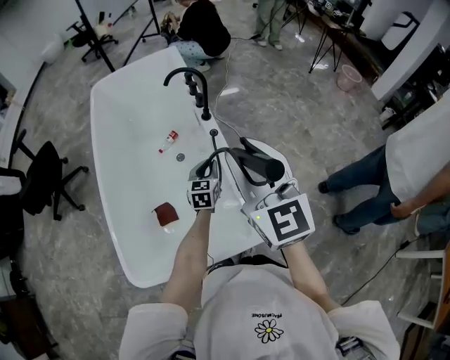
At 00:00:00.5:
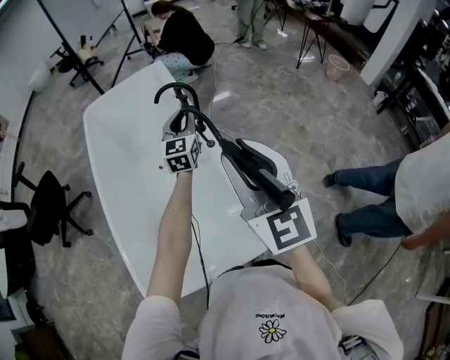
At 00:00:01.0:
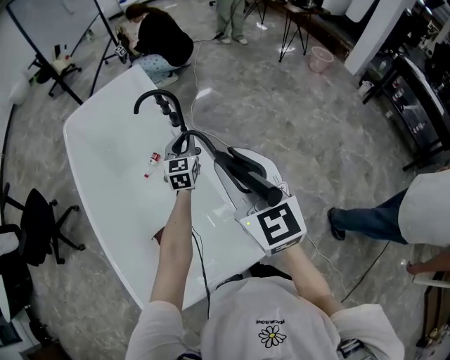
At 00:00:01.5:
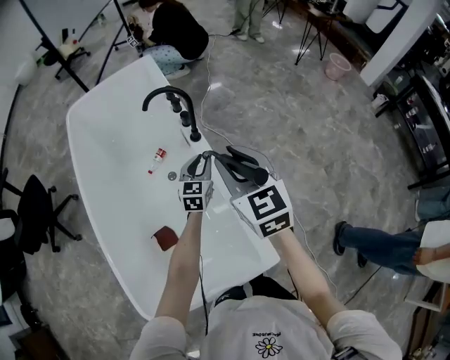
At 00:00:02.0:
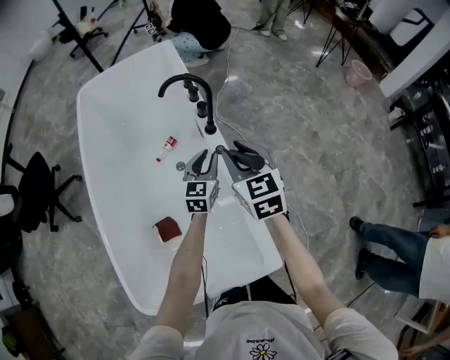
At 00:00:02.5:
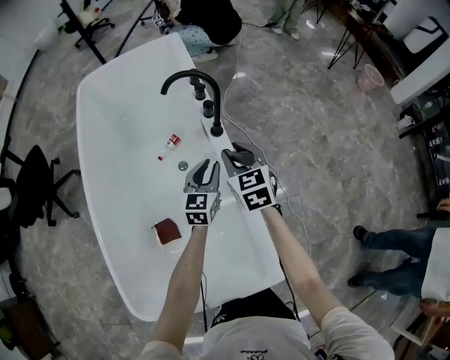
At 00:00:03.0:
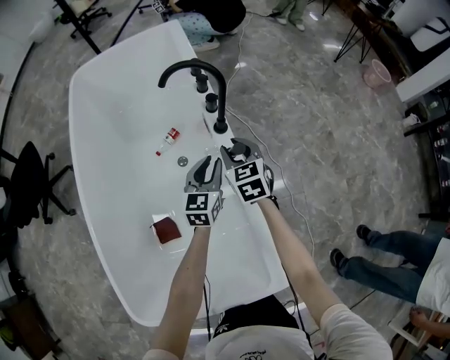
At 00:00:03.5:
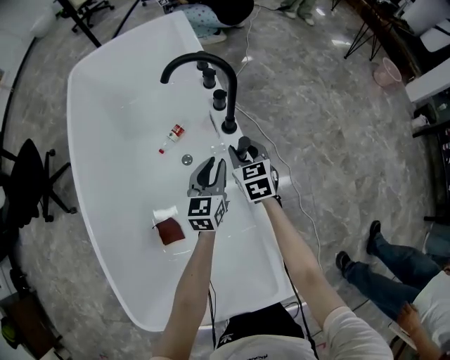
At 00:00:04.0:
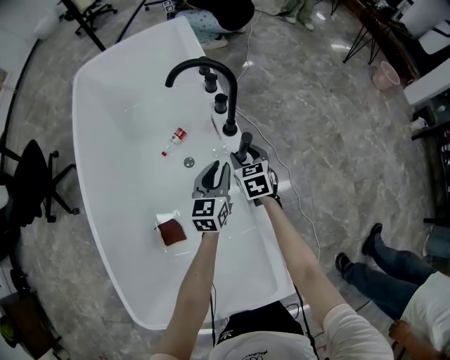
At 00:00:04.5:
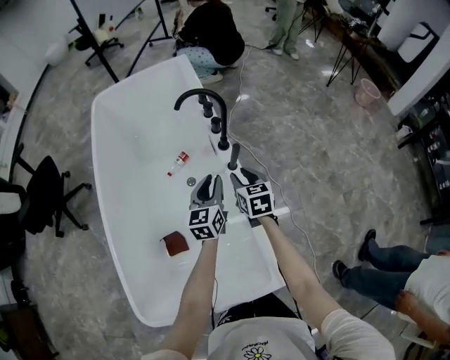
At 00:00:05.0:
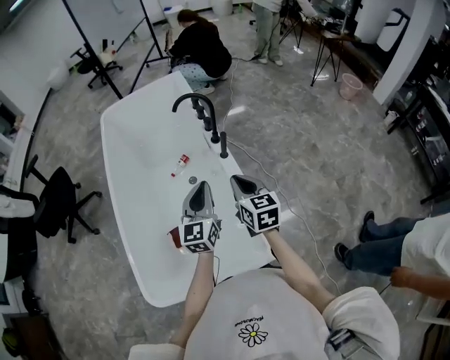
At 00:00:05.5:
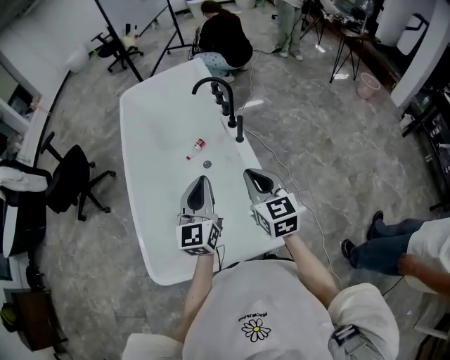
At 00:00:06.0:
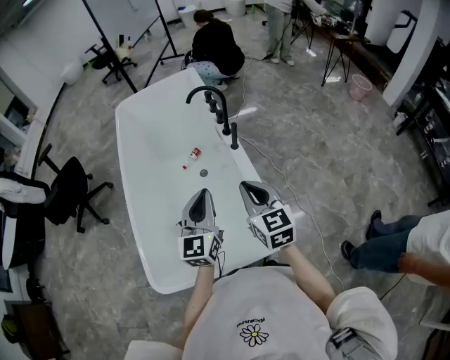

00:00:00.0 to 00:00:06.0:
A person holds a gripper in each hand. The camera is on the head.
00:00:00.0 to 00:00:02.0: The right gripper shifts approximately 30 cm forward and downward, and turns by some 30 degrees. The left gripper travels forward by some 15 cm, and moves approximately 20 cm upward and comes back.
00:00:02.0 to 00:00:04.0: The right gripper heads downward and forward, covering some 30 cm, while the left gripper goes some 10 cm downward.
00:00:04.0 to 00:00:06.0: Both grippers move backward and upward, roughly 50 cm. The right gripper rotates approximately 30 degrees, and closes up. Meanwhile the left gripper rotates roughly 20 degrees, and closes its fingers.

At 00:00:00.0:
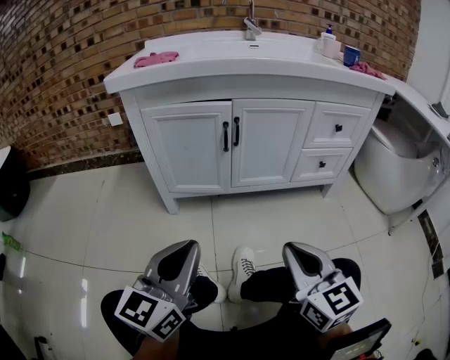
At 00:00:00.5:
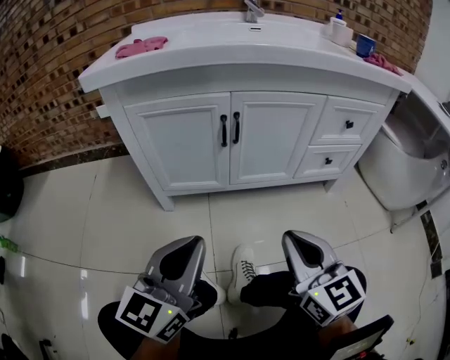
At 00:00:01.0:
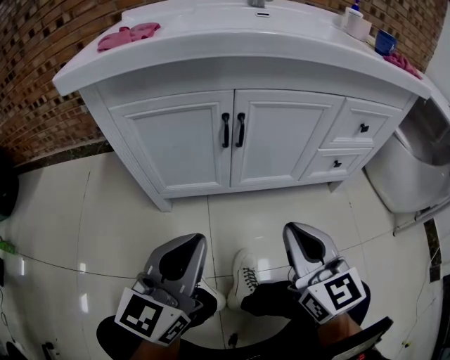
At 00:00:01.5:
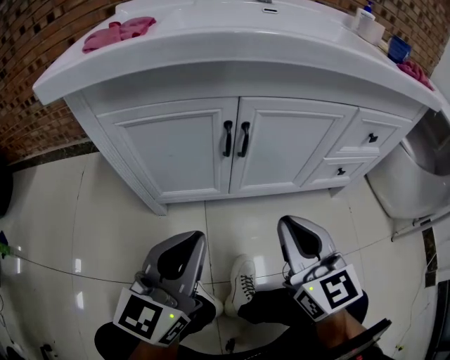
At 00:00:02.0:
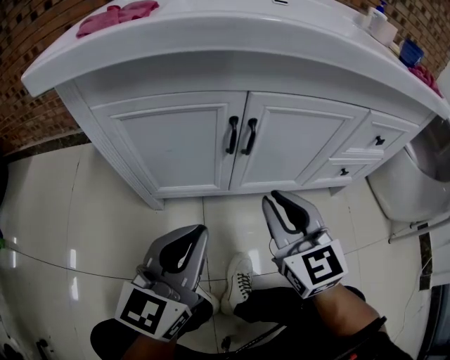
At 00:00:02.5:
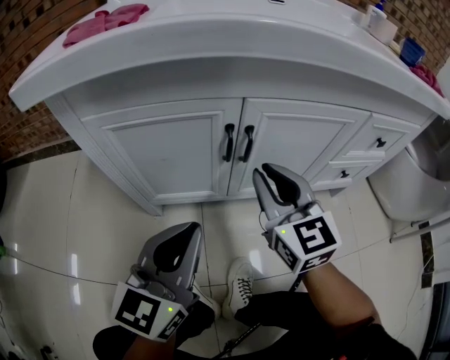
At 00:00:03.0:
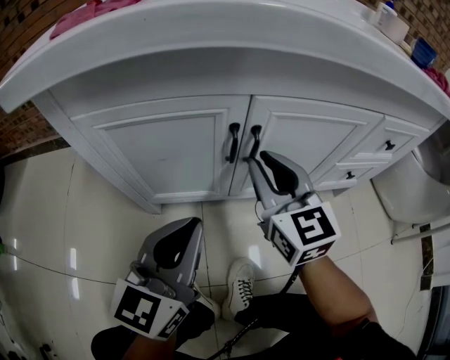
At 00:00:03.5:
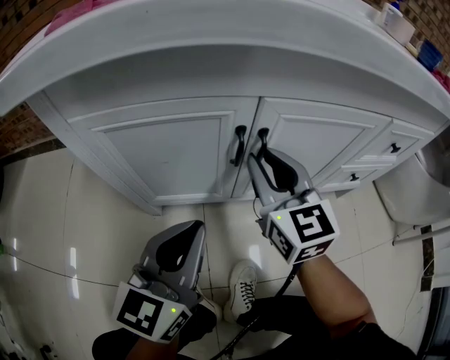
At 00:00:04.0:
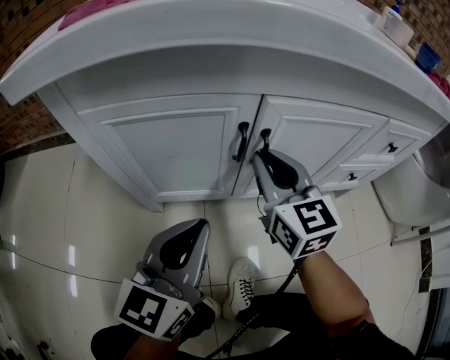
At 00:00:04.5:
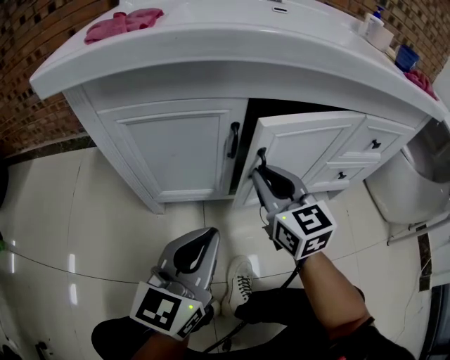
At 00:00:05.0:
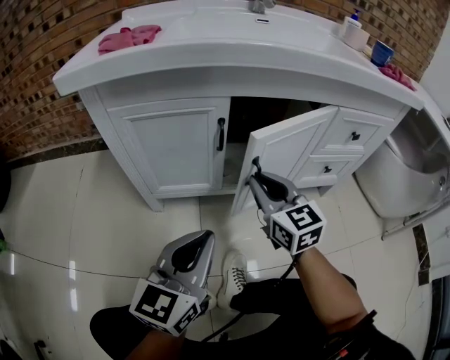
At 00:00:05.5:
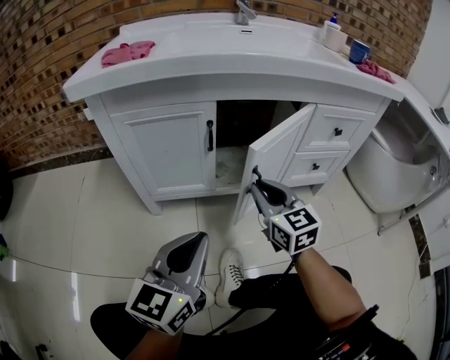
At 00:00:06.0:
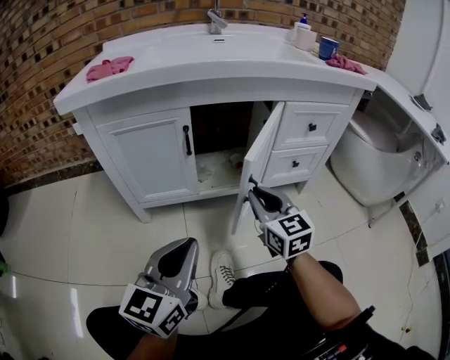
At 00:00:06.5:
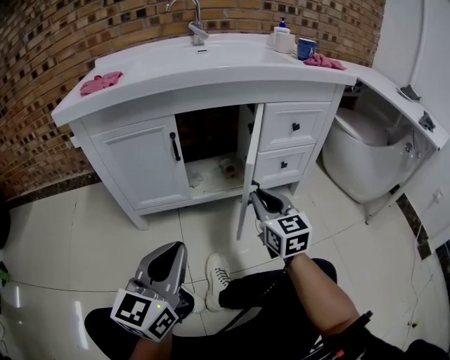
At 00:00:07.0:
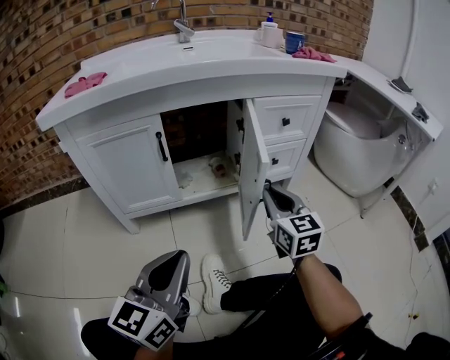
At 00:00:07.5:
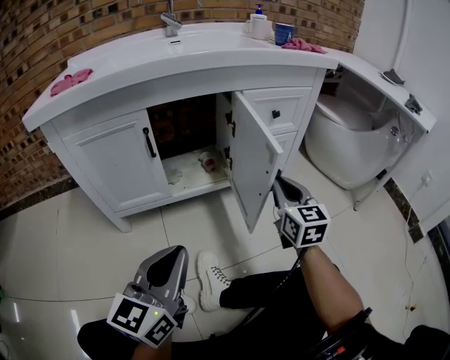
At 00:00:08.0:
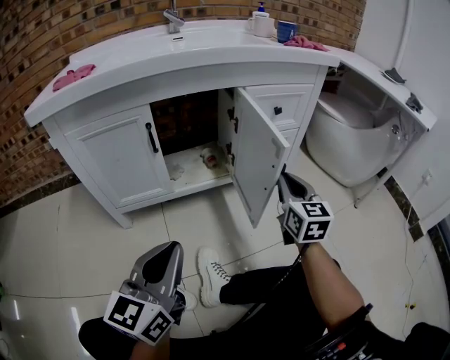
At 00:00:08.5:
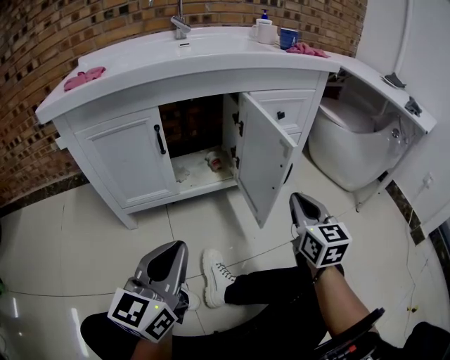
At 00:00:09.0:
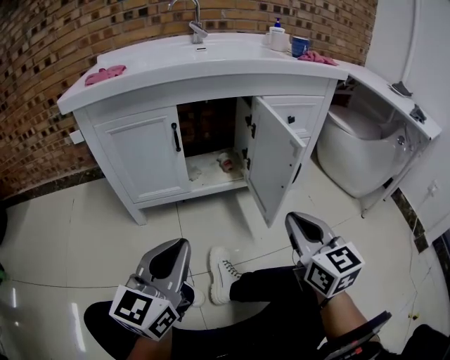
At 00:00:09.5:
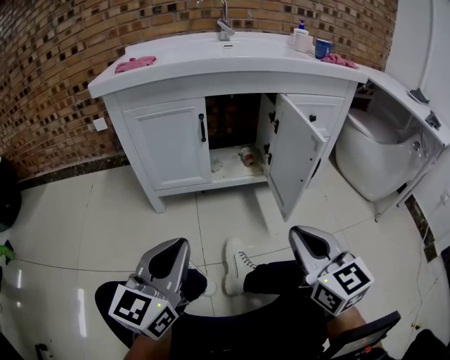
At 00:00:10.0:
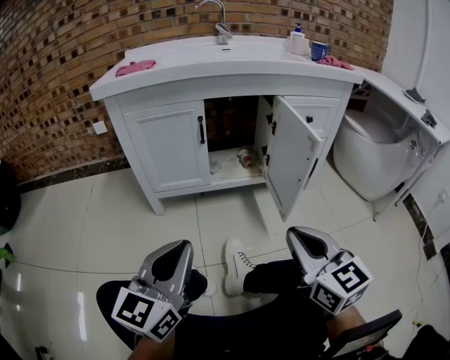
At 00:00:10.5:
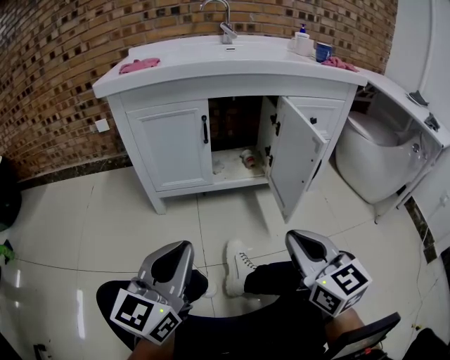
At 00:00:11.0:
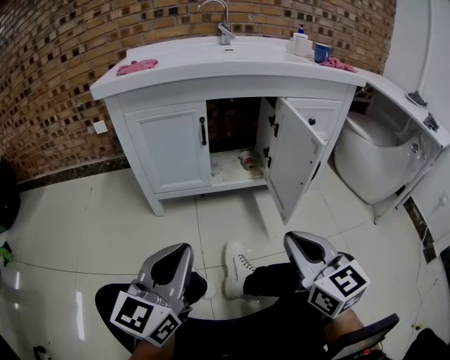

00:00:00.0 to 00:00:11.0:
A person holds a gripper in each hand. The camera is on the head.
00:00:00.0 to 00:00:02.0: The grippers both shift forward by approximately 25 cm.
00:00:02.0 to 00:00:03.5: The left gripper moves forward, roughly 5 cm. Meanwhile the right gripper shifts about 10 cm forward.
00:00:03.5 to 00:00:05.5: The right gripper heads backward and to the right, covering some 15 cm. Meanwhile the left gripper moves backward, approximately 15 cm.
00:00:05.5 to 00:00:07.5: The left gripper travels to the right by some 10 cm. Meanwhile the right gripper moves to the right, approximately 20 cm, and turns by approximately 30 degrees.
00:00:07.5 to 00:00:09.0: The left gripper moves some 5 cm, while the right gripper travels backward by about 15 cm.
00:00:09.0 to 00:00:11.0: The left gripper heads backward, covering roughly 5 cm, while the right gripper goes roughly 10 cm to the left and backward.

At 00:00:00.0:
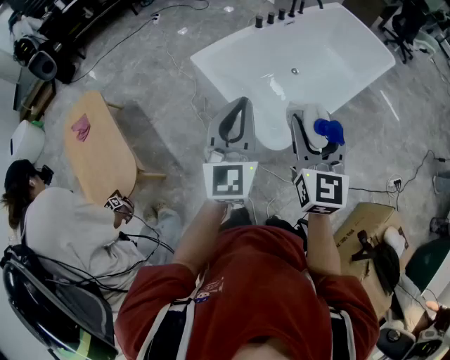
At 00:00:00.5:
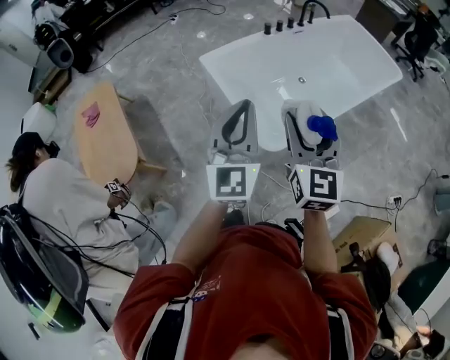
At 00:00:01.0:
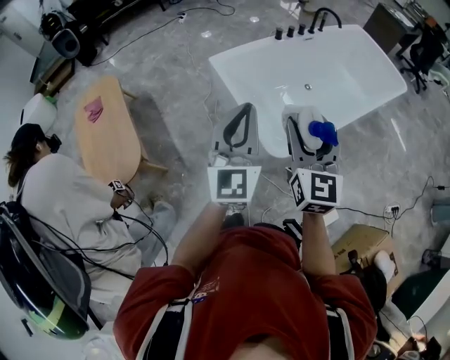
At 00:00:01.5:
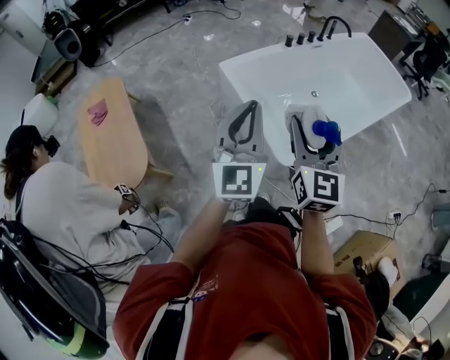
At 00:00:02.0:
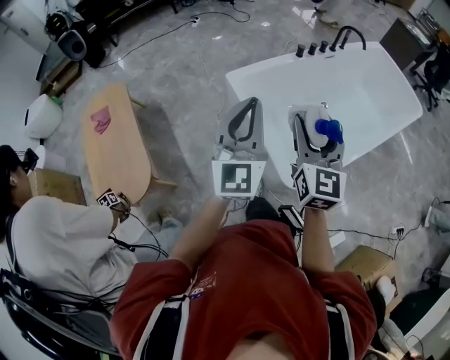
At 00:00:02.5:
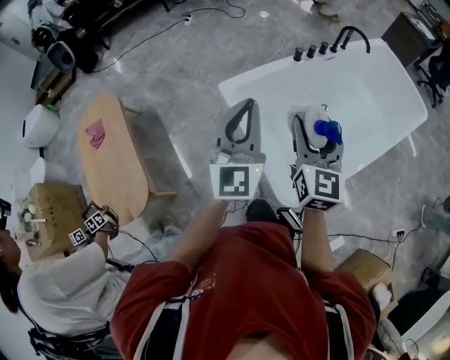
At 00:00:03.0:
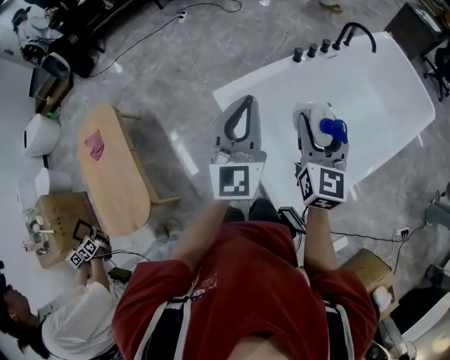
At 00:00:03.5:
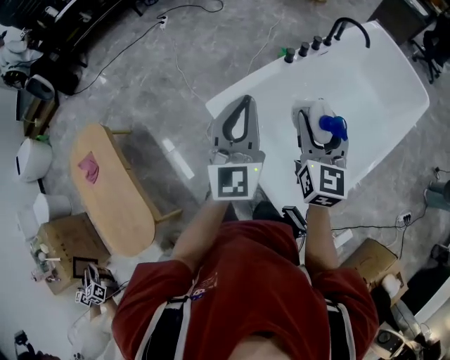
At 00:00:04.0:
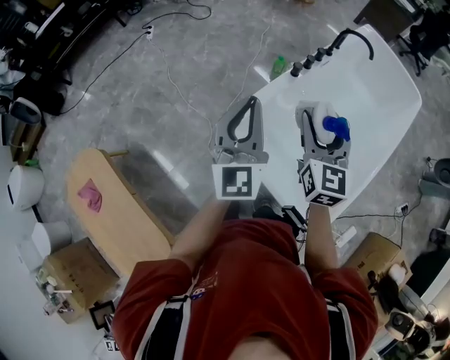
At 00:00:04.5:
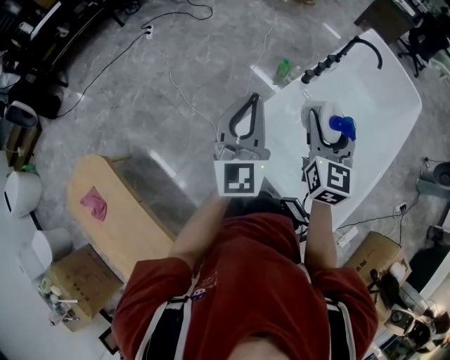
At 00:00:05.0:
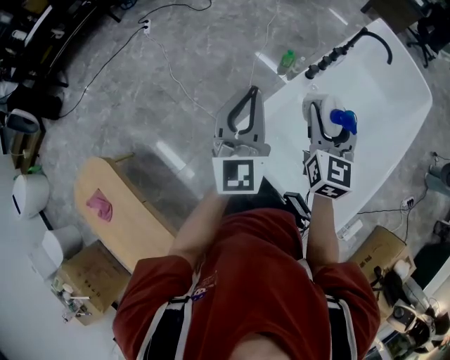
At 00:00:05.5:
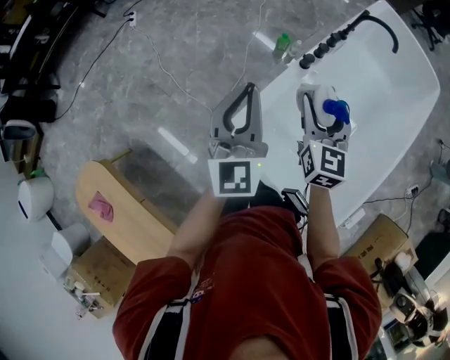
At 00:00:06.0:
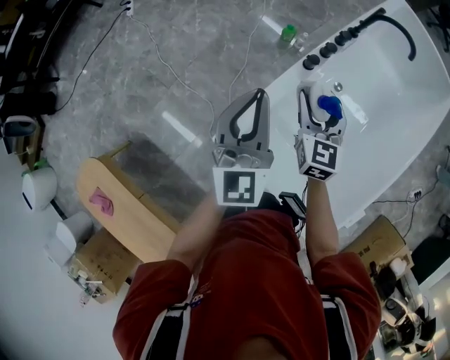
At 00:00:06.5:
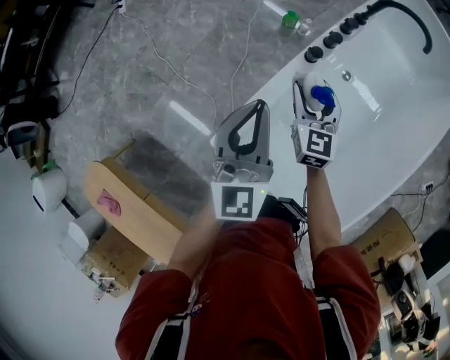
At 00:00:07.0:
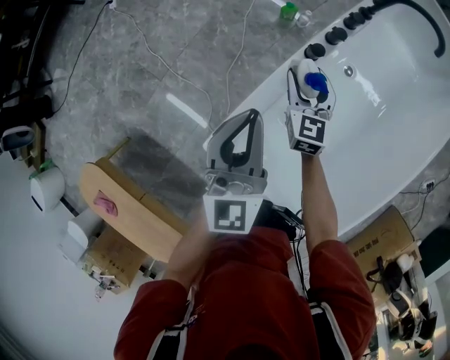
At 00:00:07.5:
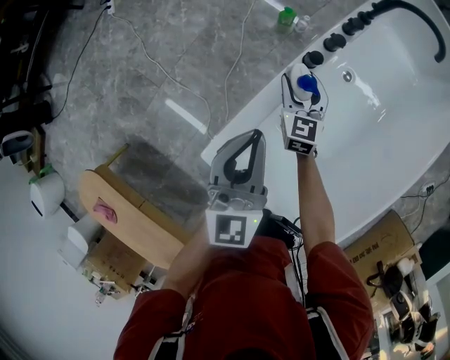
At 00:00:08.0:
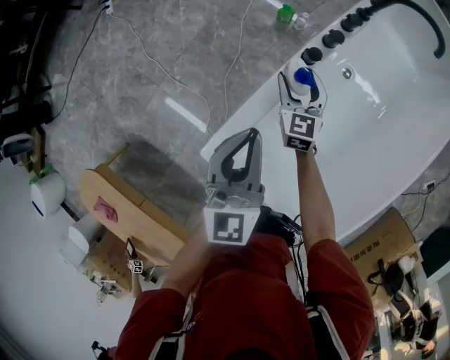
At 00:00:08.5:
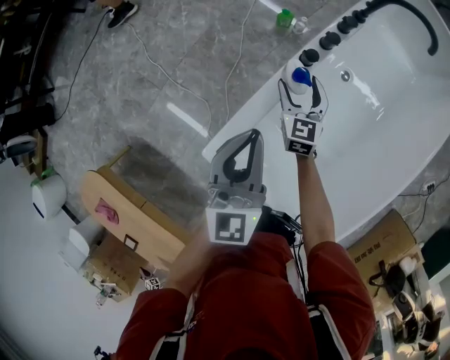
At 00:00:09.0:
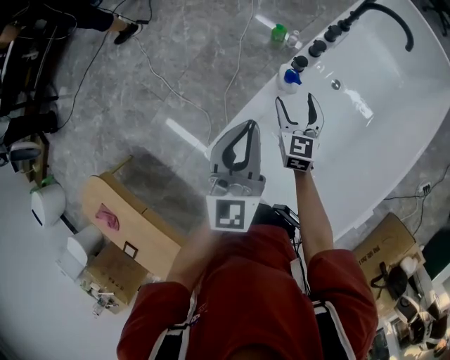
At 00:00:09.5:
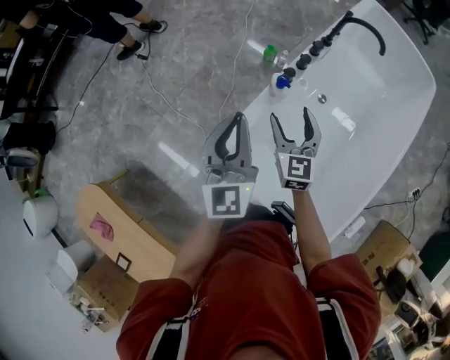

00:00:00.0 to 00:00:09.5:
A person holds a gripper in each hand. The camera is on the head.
00:00:00.0 to 00:00:02.0: Both grippers travel together forward and to the left, some 15 cm.
00:00:02.0 to 00:00:04.0: The grippers both shift forward by roughly 40 cm.
00:00:04.0 to 00:00:05.5: The left gripper heads forward, covering roughly 15 cm; the right gripper heads forward and downward, covering approximately 20 cm.
00:00:05.5 to 00:00:07.5: The left gripper travels downward, to the right and forward by about 20 cm. Meanwhile the right gripper heads downward and forward, covering roughly 30 cm.
00:00:07.5 to 00:00:09.5: The left gripper travels upward by about 10 cm, while the right gripper shifts about 20 cm upward and backward.
